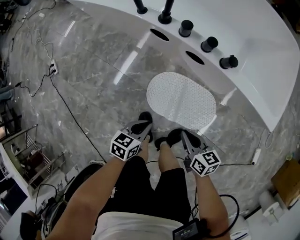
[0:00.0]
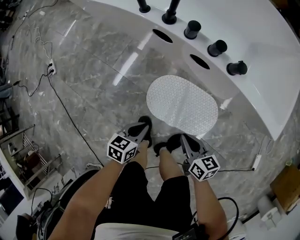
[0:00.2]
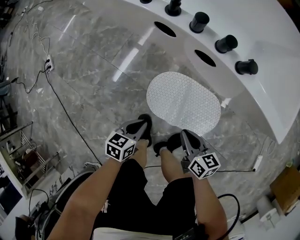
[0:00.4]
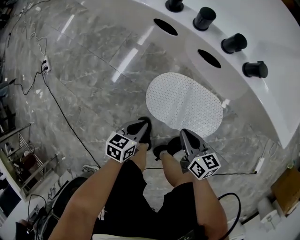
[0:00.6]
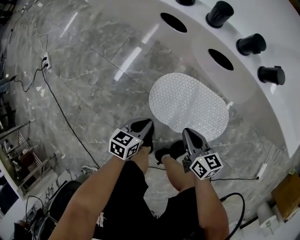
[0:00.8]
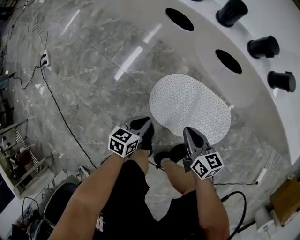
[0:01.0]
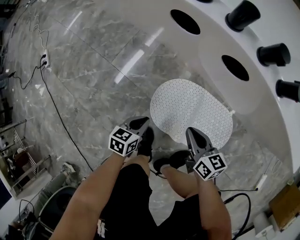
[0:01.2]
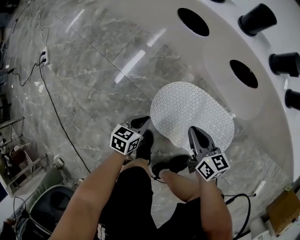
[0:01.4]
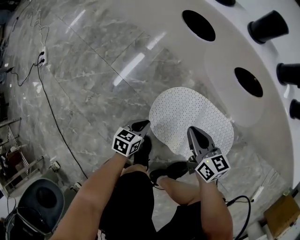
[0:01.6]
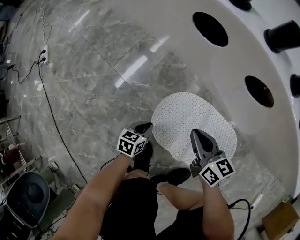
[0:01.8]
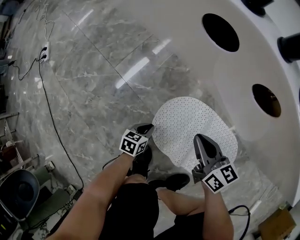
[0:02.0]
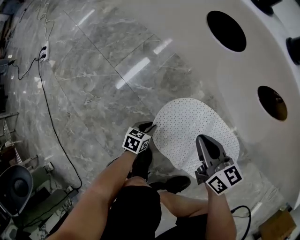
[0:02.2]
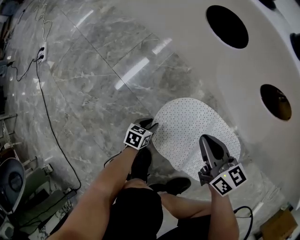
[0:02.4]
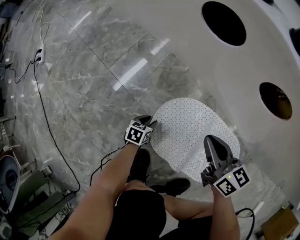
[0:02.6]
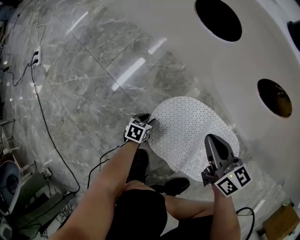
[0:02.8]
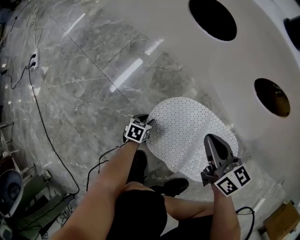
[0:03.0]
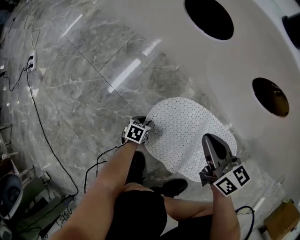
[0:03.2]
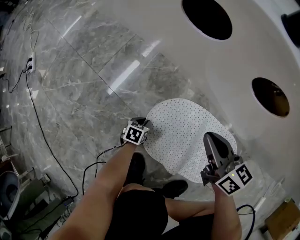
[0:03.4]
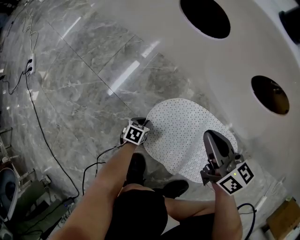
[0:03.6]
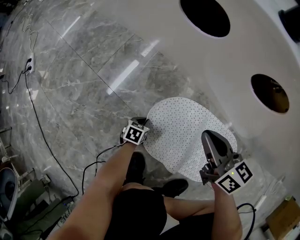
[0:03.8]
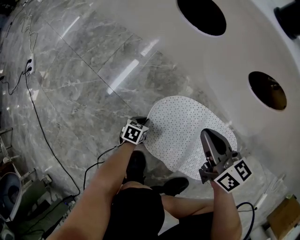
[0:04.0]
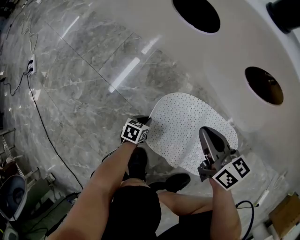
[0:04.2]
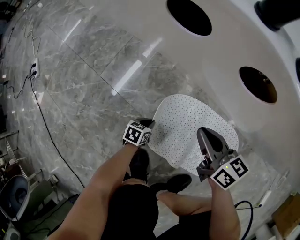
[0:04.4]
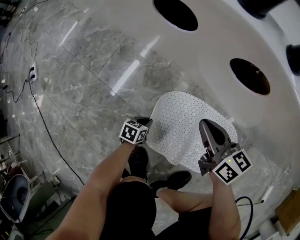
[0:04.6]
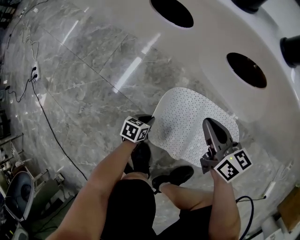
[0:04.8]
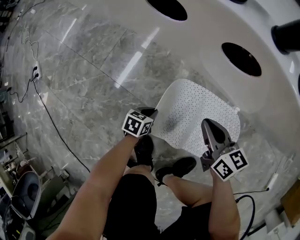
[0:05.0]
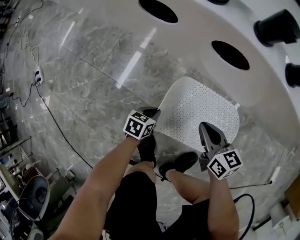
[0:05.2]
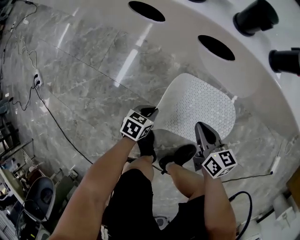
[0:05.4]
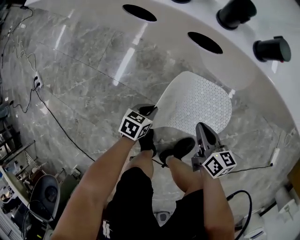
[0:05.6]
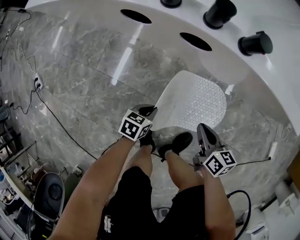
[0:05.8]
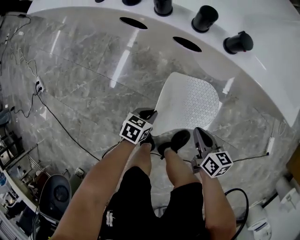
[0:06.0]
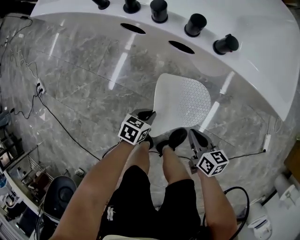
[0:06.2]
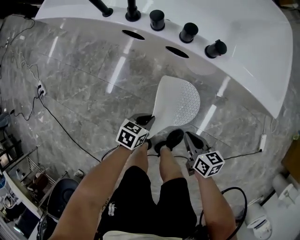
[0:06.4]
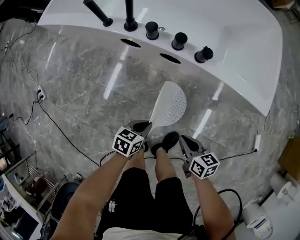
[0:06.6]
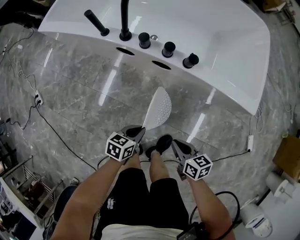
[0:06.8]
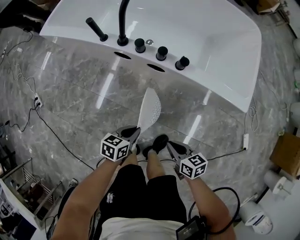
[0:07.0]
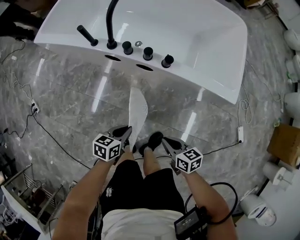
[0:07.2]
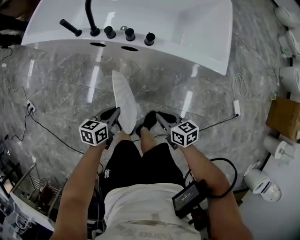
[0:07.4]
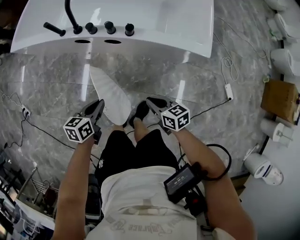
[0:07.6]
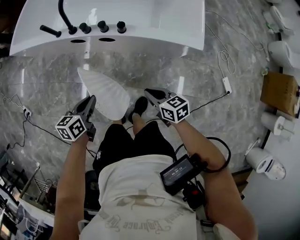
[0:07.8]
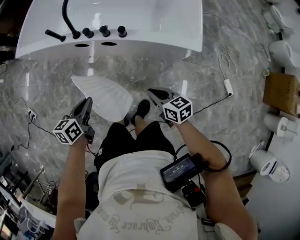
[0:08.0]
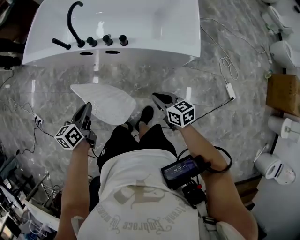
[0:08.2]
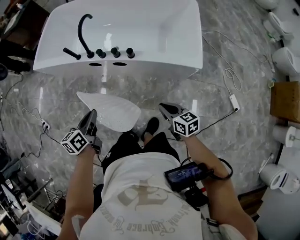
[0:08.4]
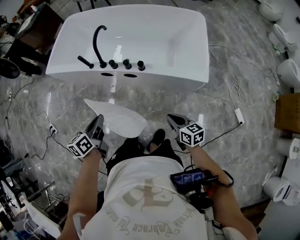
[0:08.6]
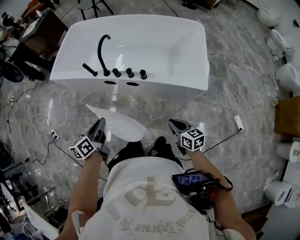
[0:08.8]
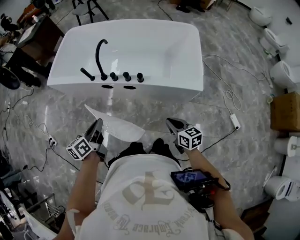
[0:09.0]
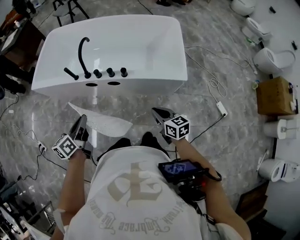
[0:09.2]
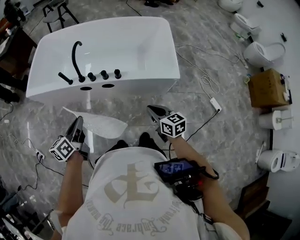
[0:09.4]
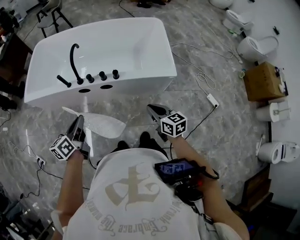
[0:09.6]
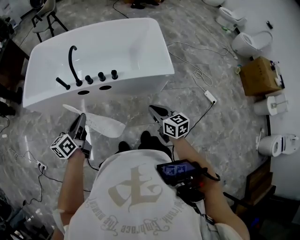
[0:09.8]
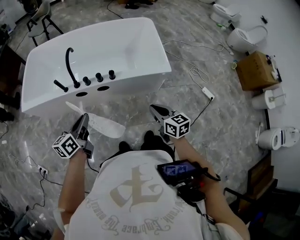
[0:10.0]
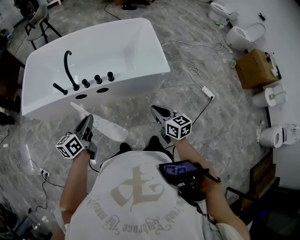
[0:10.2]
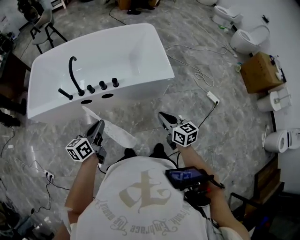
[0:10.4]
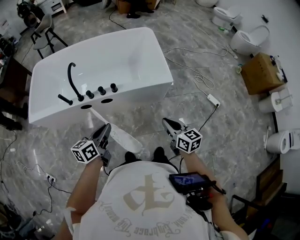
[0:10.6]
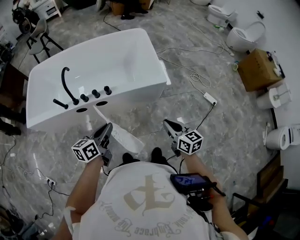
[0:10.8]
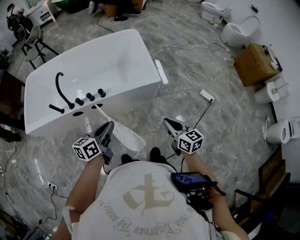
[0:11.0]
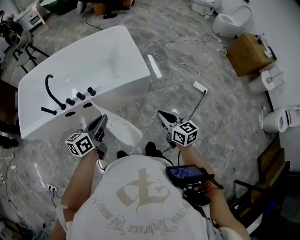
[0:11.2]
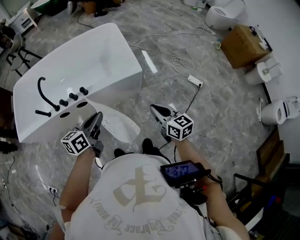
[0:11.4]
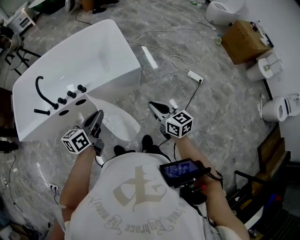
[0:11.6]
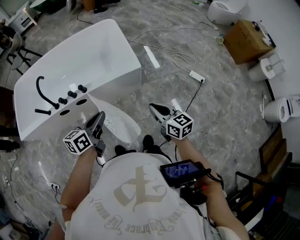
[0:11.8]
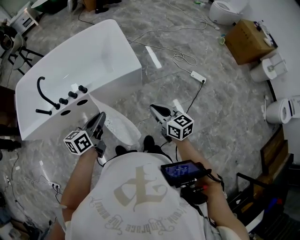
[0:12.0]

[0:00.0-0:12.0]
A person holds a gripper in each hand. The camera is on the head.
0:00.0 to 0:01.6: The left gripper heads downward, covering about 35 cm. Meanwhile the right gripper is displaced downward and forward by approximately 30 cm.
0:01.6 to 0:03.0: The left gripper moves downward, about 20 cm, and opens its fingers. Meanwhile the right gripper shifts approximately 5 cm forward.
0:03.0 to 0:04.4: The left gripper moves some 5 cm, and closes.
0:04.4 to 0:06.0: The left gripper moves upward, roughly 30 cm; the right gripper is displaced to the right, backward and upward by some 25 cm, and rotates approximately 30 degrees.
0:06.0 to 0:07.6: Both grippers travel together upward, about 30 cm. The left gripper changes its angle by approximately 20 degrees.
0:07.6 to 0:09.0: The right gripper is displaced upward and to the right by roughly 15 cm, while the left gripper moves upward, approximately 20 cm, and rotates some 20 degrees.
0:09.0 to 0:10.4: The left gripper heads to the right, covering roughly 5 cm, and rotates about 30 degrees. The right gripper travels upward and backward by some 10 cm, and changes its angle by approximately 20 degrees.
0:10.4 to 0:12.0: Both grippers move to the right, about 20 cm.

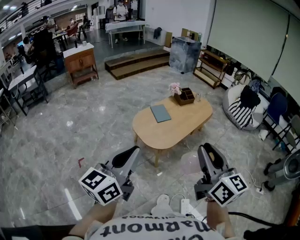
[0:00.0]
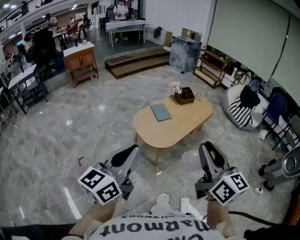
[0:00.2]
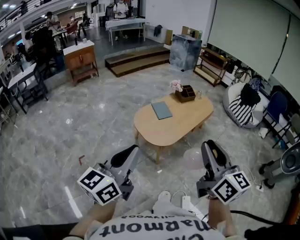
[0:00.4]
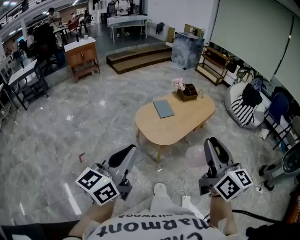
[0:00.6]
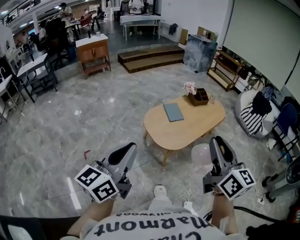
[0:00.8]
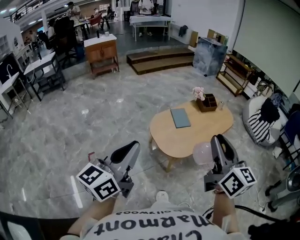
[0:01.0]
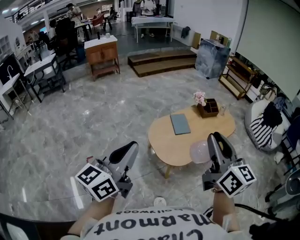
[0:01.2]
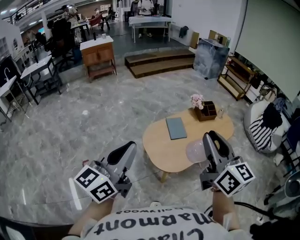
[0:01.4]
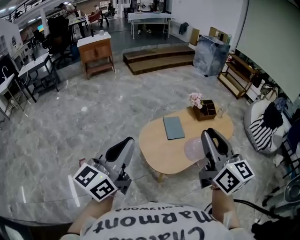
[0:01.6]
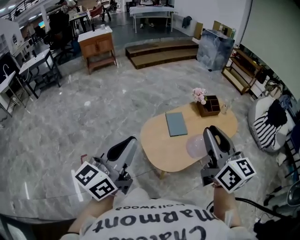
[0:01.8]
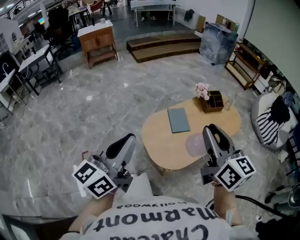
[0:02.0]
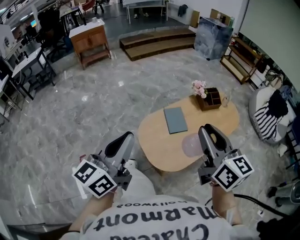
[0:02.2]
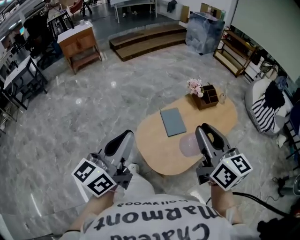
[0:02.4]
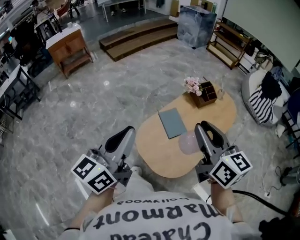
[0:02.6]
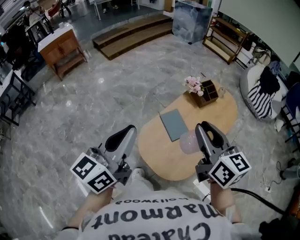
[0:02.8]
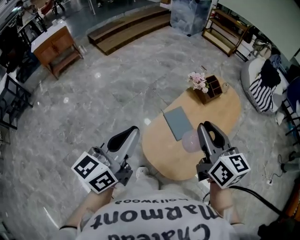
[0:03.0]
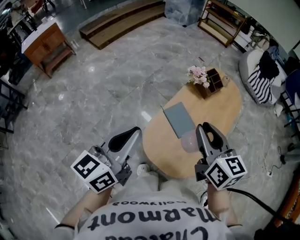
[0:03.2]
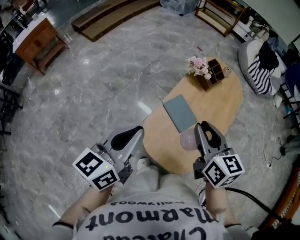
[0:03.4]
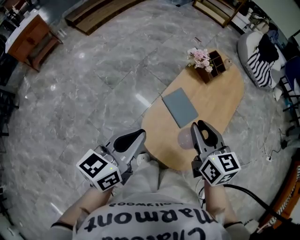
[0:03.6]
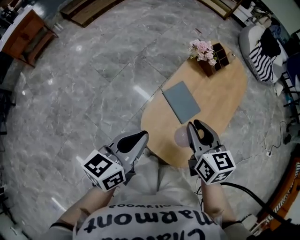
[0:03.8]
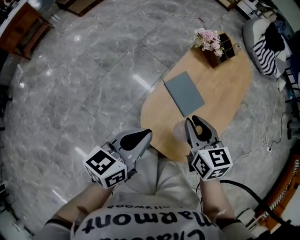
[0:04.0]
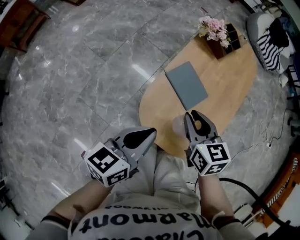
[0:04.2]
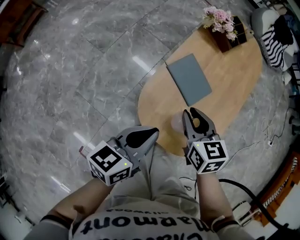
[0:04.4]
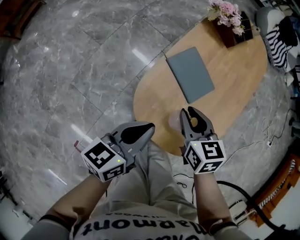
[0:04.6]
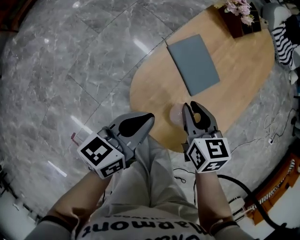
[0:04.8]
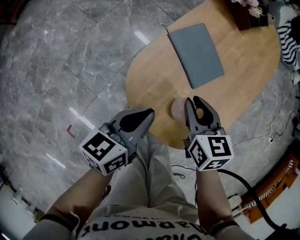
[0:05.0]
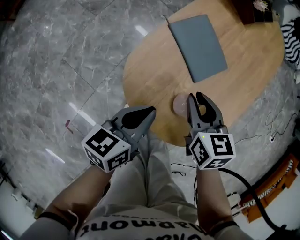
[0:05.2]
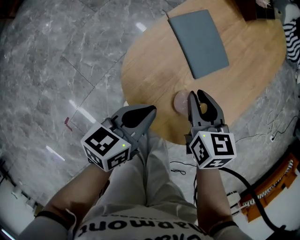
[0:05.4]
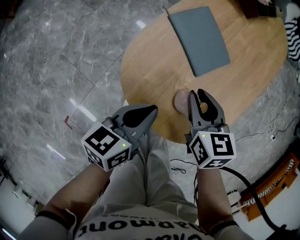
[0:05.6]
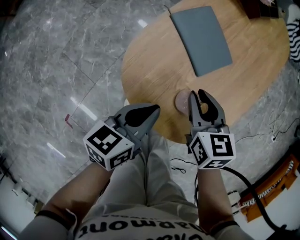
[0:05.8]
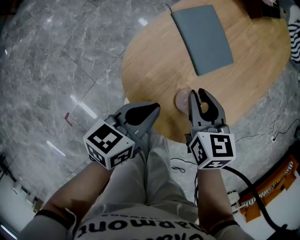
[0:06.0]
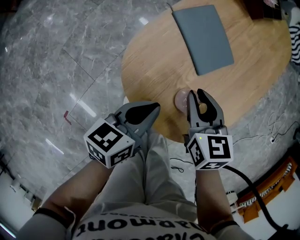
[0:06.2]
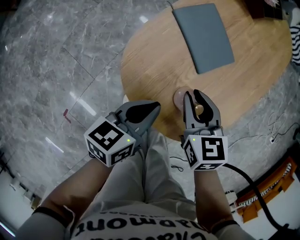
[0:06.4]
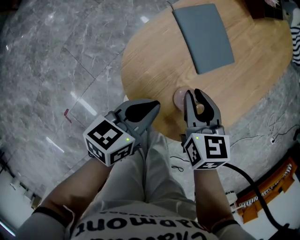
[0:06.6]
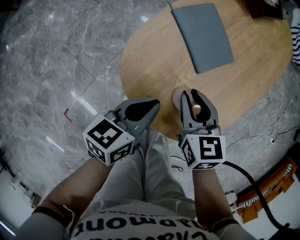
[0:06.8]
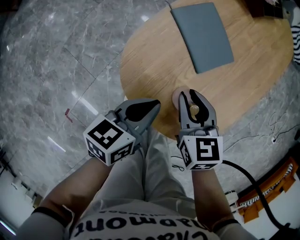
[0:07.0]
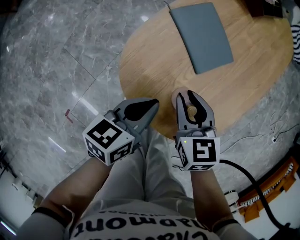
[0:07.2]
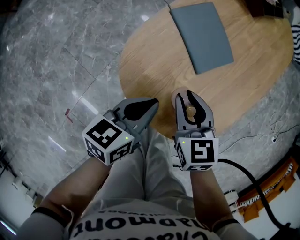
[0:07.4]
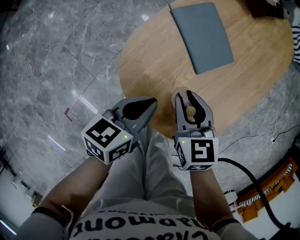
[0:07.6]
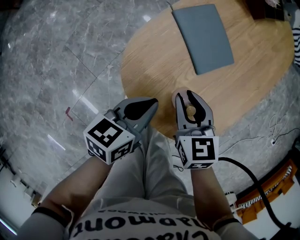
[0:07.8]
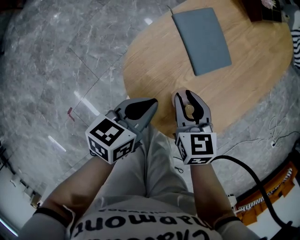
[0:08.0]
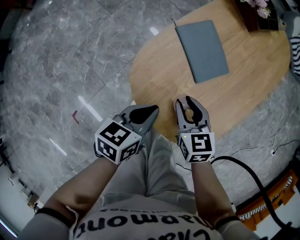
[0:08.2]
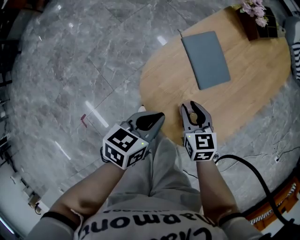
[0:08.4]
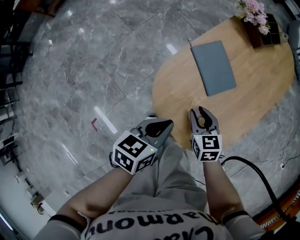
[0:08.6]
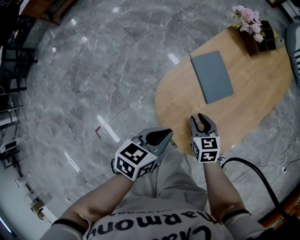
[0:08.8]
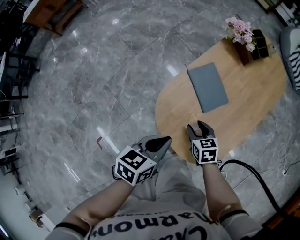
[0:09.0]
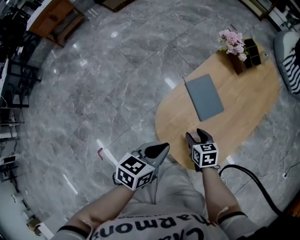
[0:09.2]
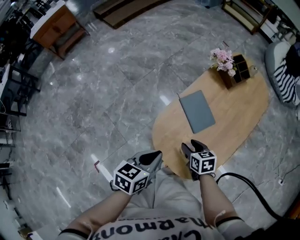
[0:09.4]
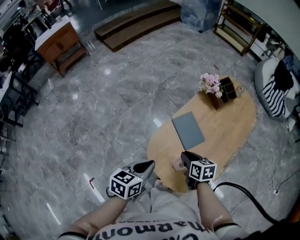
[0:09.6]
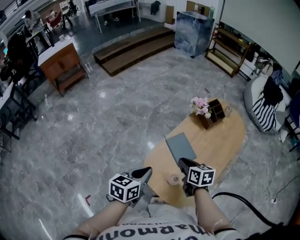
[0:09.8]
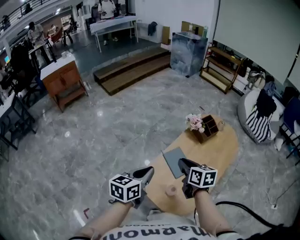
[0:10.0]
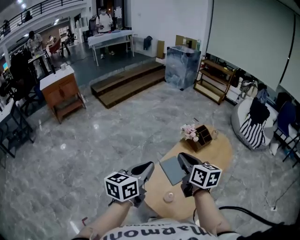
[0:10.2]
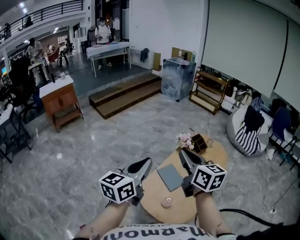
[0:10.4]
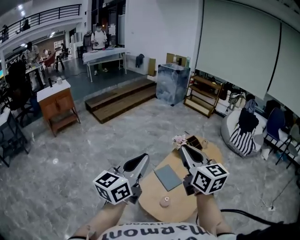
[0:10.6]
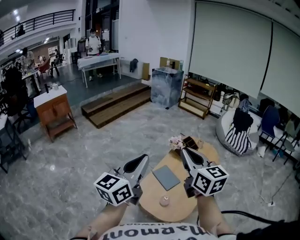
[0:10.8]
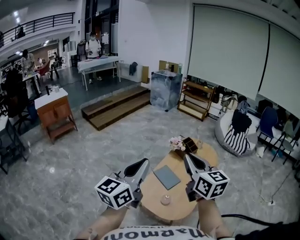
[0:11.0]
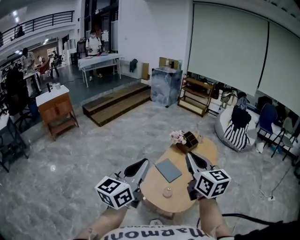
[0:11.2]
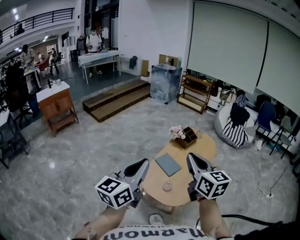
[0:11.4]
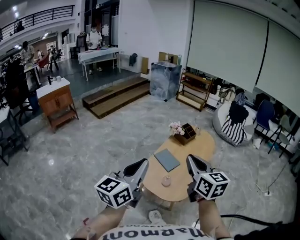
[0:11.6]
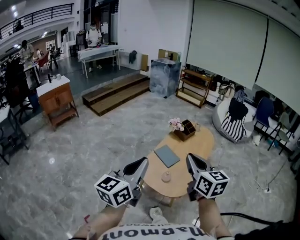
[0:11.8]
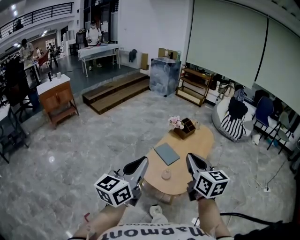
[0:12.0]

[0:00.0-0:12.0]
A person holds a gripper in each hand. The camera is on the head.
0:00.0 to 0:01.6: The grippers both shift forward by some 30 cm.
0:01.6 to 0:03.0: The left gripper moves forward, approximately 30 cm, and changes its angle by some 20 degrees. Meanwhile the right gripper travels forward and downward by about 30 cm, and swivels approximately 20 degrees.
0:03.0 to 0:04.4: The grippers both shift downward by about 30 cm. The right gripper swivels roughly 30 degrees. Meanwhile the left gripper changes its angle by some 40 degrees.
0:04.4 to 0:06.0: The grippers both shift downward and to the right by roughly 15 cm.
0:06.0 to 0:07.6: The grippers move only a little.
0:07.6 to 0:09.0: The left gripper heads upward, covering approximately 15 cm.
0:09.0 to 0:10.4: The grippers both shift upward by roughly 40 cm. The left gripper tilts its fingers roughly 40 degrees upward. Meanwhile the right gripper points its fingers about 50 degrees further upward, and closes up.
0:10.4 to 0:12.0: Both grippers travel together backward, some 25 cm.
